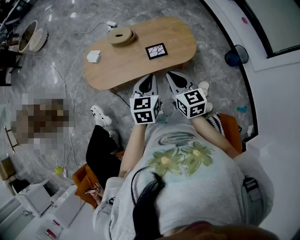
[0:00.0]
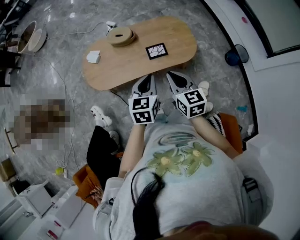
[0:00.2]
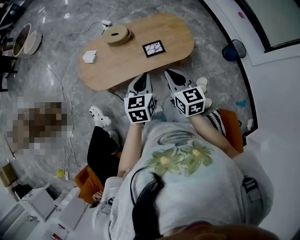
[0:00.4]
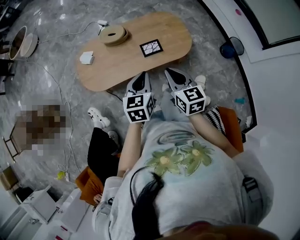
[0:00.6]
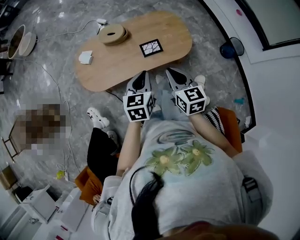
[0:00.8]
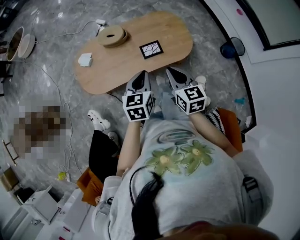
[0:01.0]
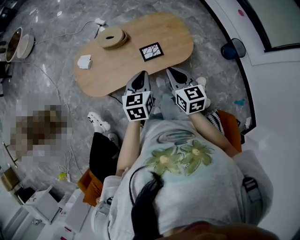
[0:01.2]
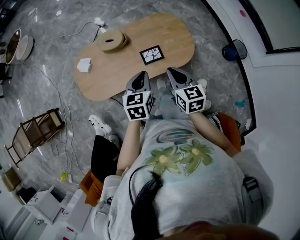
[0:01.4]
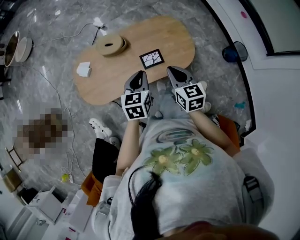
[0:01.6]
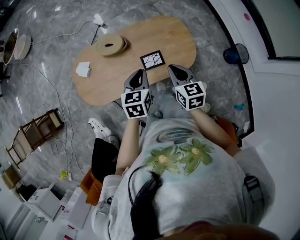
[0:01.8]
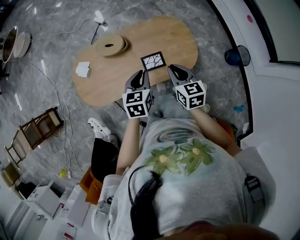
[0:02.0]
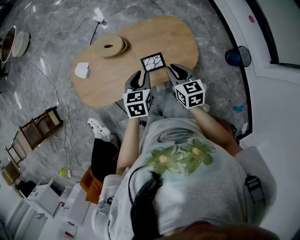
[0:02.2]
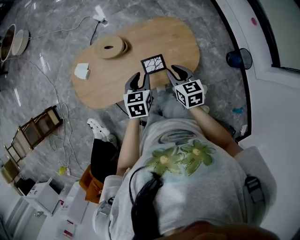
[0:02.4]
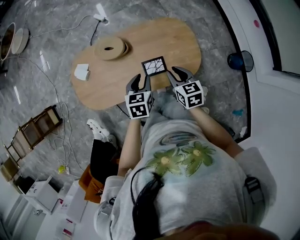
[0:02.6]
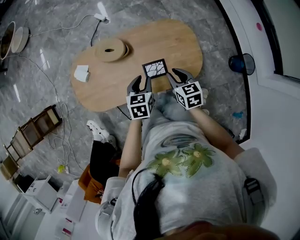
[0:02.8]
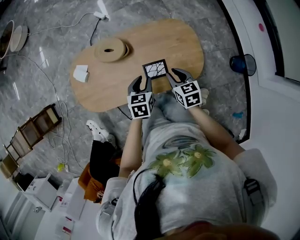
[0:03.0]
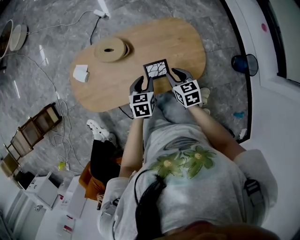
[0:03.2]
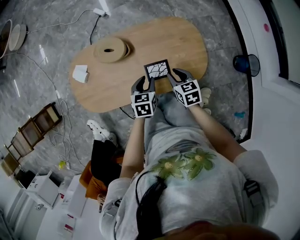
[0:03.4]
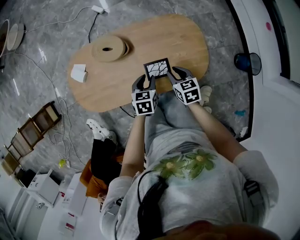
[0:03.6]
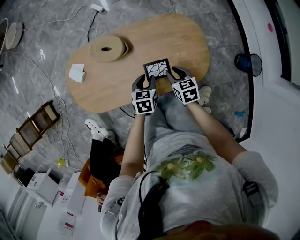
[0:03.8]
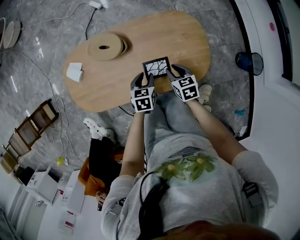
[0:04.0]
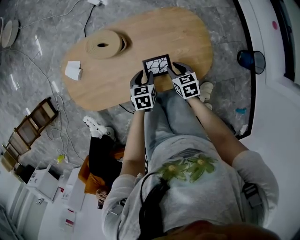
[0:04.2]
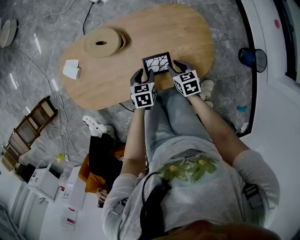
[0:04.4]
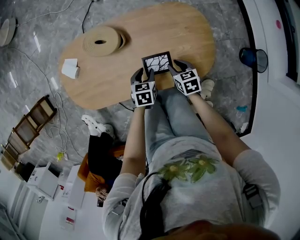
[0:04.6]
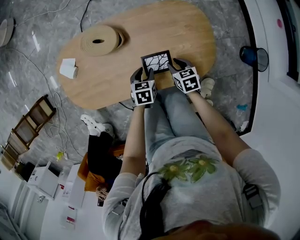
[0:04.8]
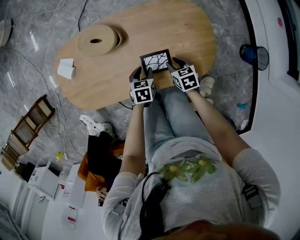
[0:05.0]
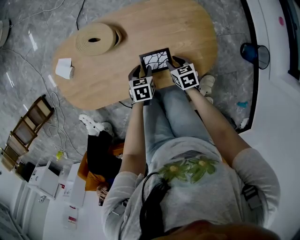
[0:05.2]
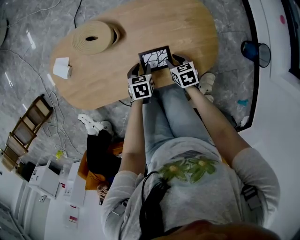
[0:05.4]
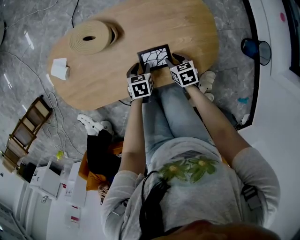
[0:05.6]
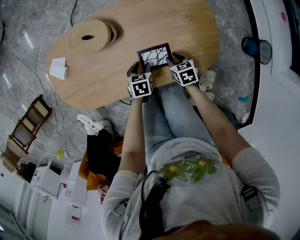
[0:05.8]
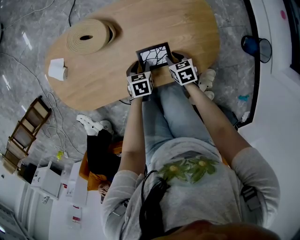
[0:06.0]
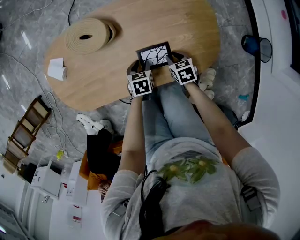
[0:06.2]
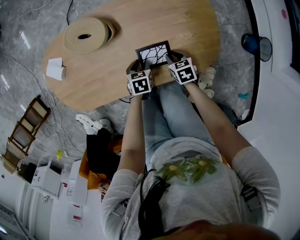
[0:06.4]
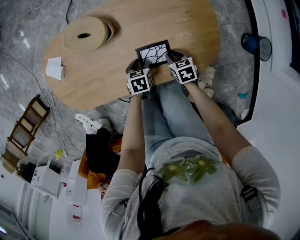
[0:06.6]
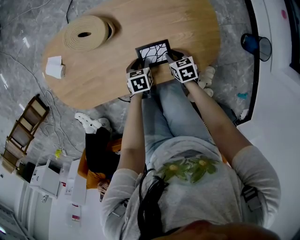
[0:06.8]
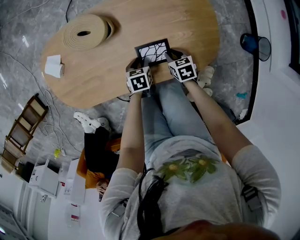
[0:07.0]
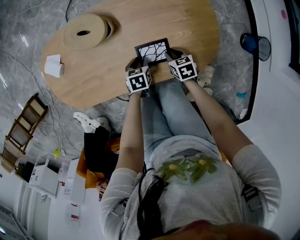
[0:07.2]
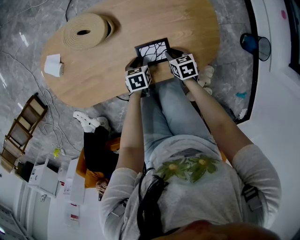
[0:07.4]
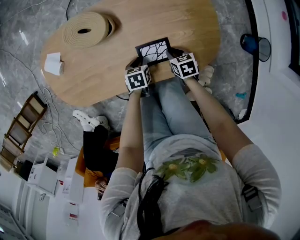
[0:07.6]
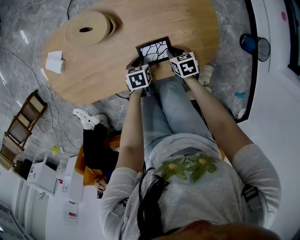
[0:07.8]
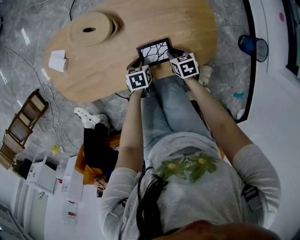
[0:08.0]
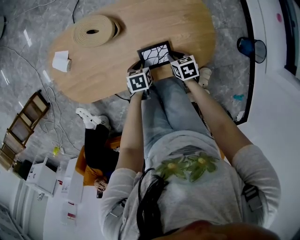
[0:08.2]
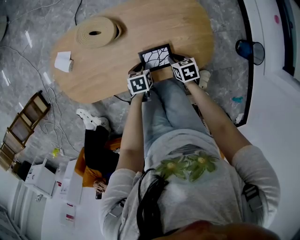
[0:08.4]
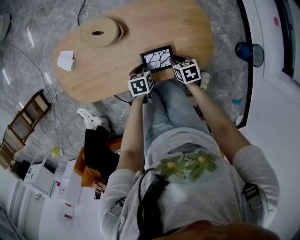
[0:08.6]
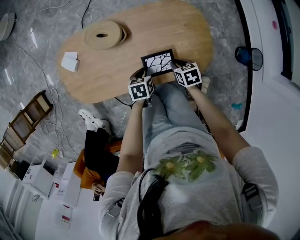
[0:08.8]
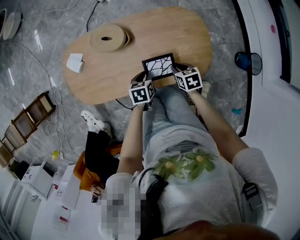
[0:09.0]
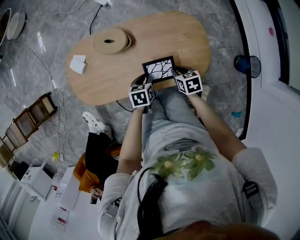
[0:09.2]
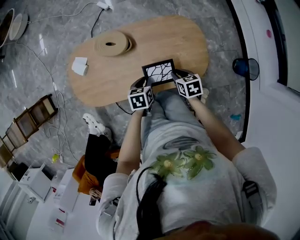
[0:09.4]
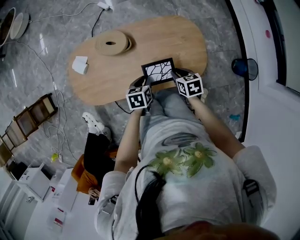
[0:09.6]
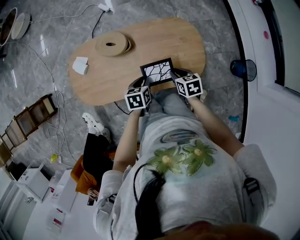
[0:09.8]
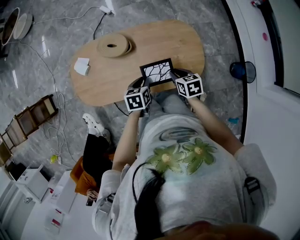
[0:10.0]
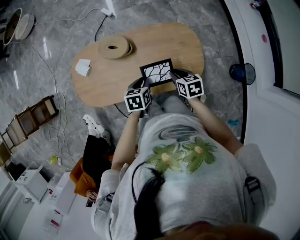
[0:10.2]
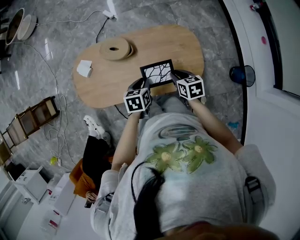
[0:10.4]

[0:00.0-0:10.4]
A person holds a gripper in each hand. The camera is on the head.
0:00.0 to 0:01.4: The two grippers go approximately 15 cm forward and downward.
0:01.4 to 0:03.0: Both grippers travel together forward and downward, approximately 20 cm. The left gripper opens its fingers, while the right gripper swivels approximately 20 degrees.
0:03.0 to 0:04.4: The grippers both shift downward by about 15 cm.
0:04.4 to 0:06.0: Both grippers travel together downward, approximately 10 cm.
0:06.0 to 0:07.4: There are only small adjustments of the grippers.
0:07.4 to 0:09.0: The grippers both shift upward by approximately 15 cm.
0:09.0 to 0:10.4: The grippers both shift upward by about 10 cm.

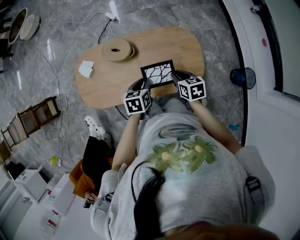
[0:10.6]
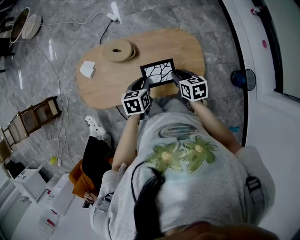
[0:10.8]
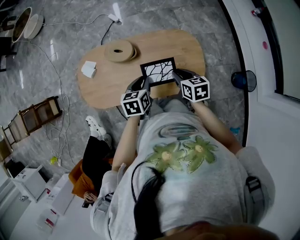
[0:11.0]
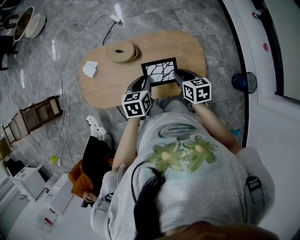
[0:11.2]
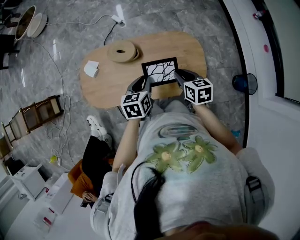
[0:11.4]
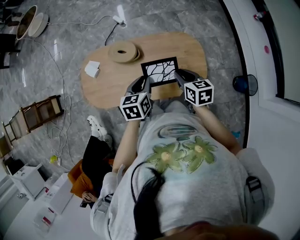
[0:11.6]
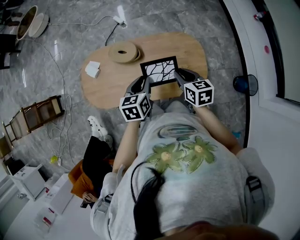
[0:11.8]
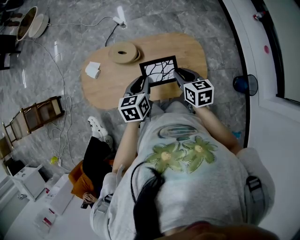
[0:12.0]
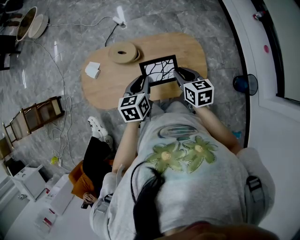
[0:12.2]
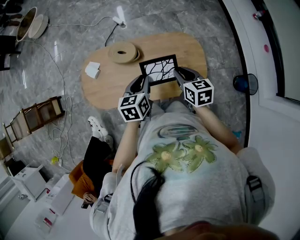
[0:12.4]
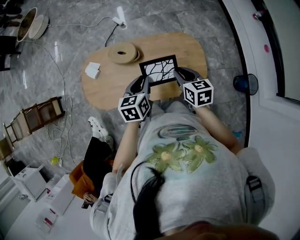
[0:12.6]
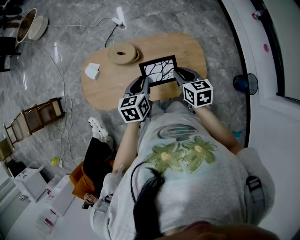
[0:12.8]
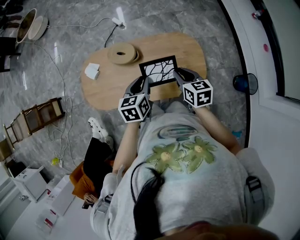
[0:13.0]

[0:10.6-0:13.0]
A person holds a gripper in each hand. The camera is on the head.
0:10.6 to 0:11.8: Both grippers travel together upward, roughly 10 cm.
0:11.8 to 0:13.0: Neither gripper changes place.

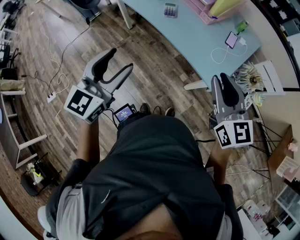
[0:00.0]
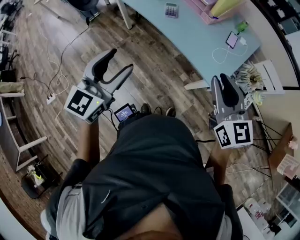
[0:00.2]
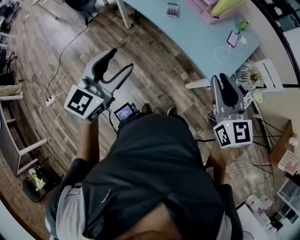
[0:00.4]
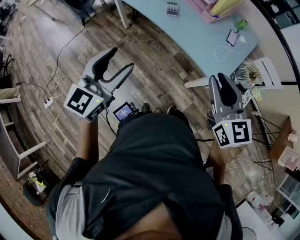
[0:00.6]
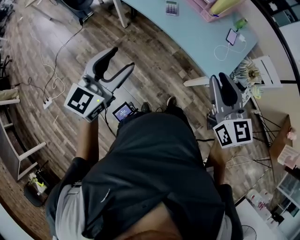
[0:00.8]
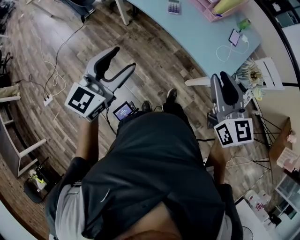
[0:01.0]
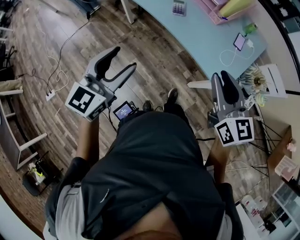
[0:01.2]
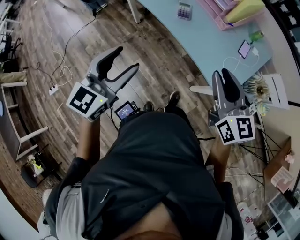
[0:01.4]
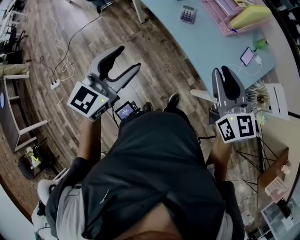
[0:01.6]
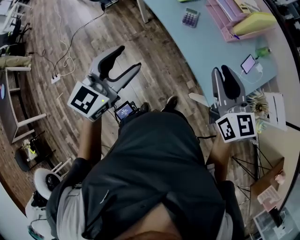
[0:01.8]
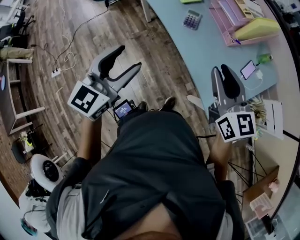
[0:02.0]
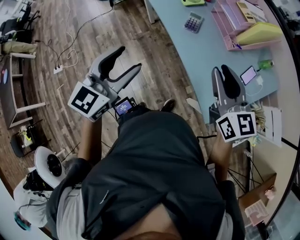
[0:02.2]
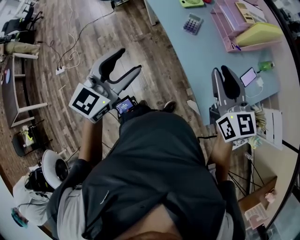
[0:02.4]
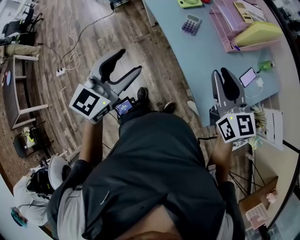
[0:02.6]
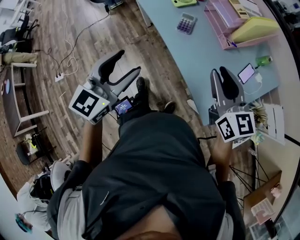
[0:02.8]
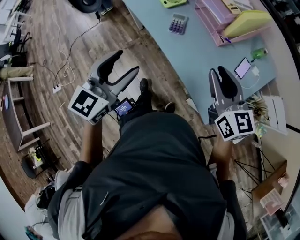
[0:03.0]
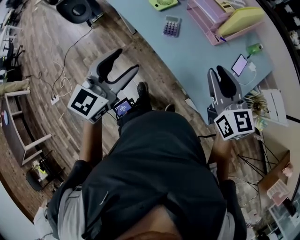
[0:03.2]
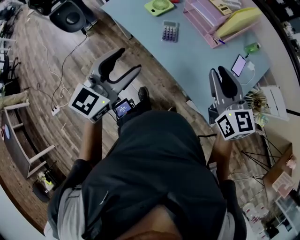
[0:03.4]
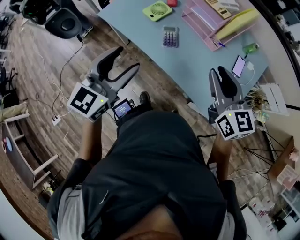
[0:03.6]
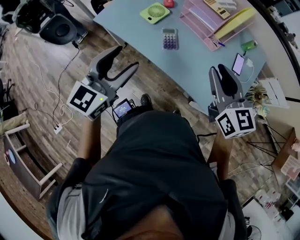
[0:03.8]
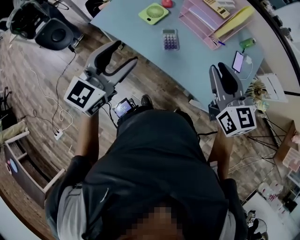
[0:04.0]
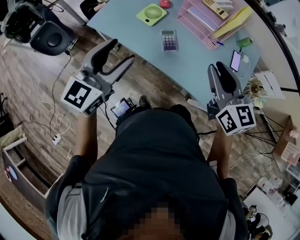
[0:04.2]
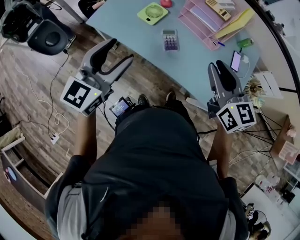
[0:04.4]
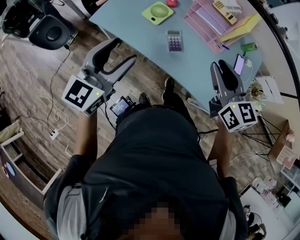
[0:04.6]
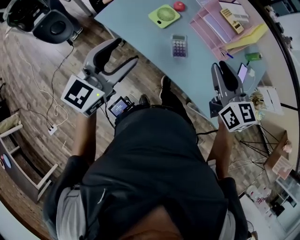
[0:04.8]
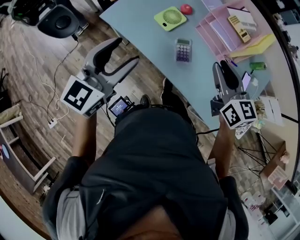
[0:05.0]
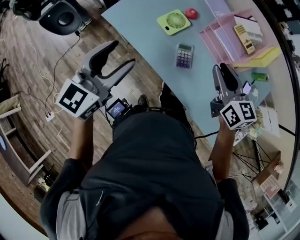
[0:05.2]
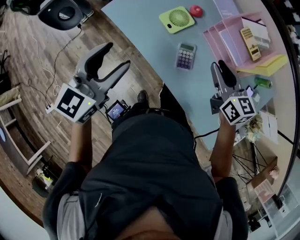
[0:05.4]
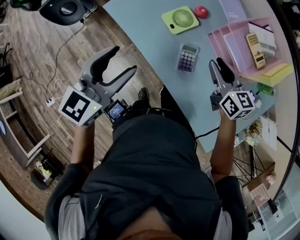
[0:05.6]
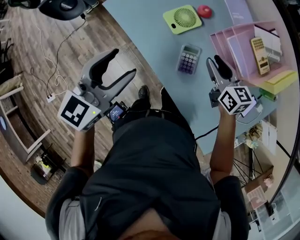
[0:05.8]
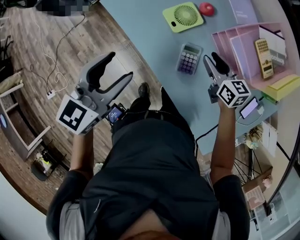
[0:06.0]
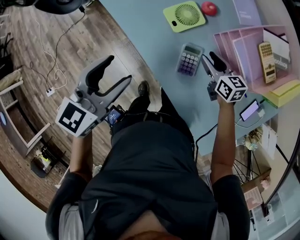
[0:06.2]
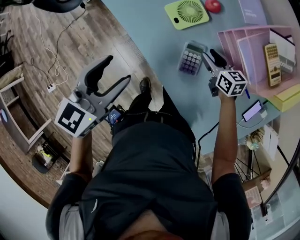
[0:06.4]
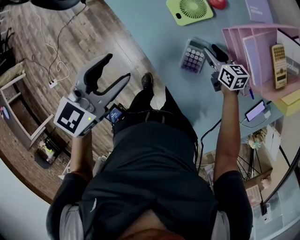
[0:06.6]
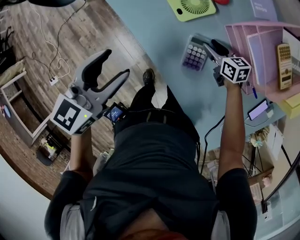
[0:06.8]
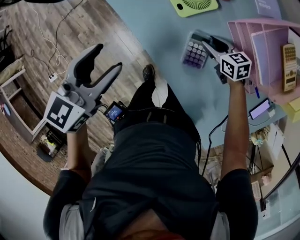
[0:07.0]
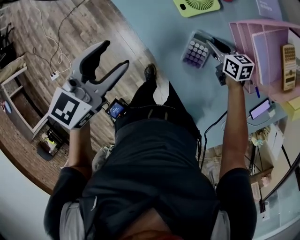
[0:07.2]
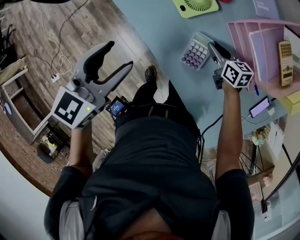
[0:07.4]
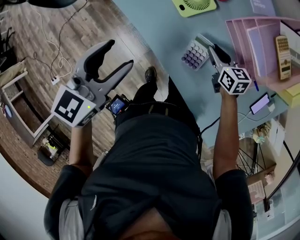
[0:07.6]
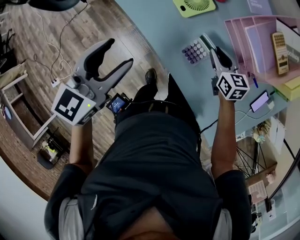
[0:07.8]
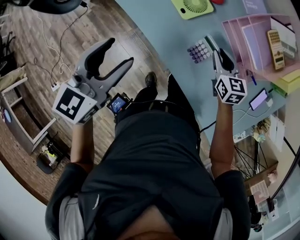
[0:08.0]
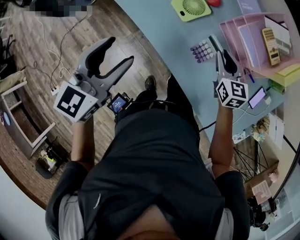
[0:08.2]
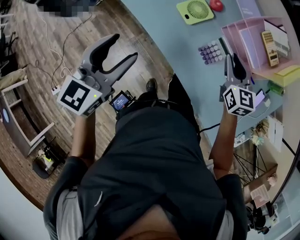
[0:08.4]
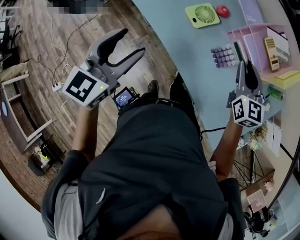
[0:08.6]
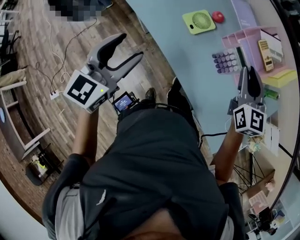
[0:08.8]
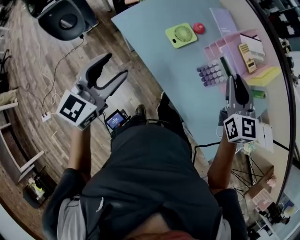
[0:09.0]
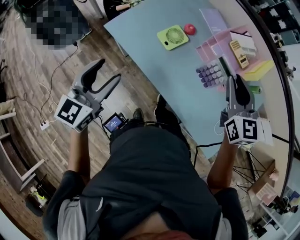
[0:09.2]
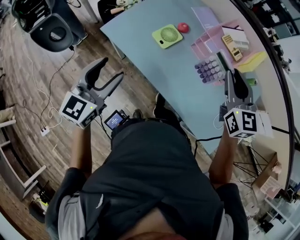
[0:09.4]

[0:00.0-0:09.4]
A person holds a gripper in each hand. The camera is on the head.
0:00.0 to 0:01.6: The right gripper heads forward and to the left, covering some 15 cm, while the left gripper heads forward, covering about 10 cm.
0:01.6 to 0:03.2: Both grippers move forward and to the right, roughly 15 cm.
0:03.2 to 0:04.8: Both grippers travel together to the left and forward, roughly 25 cm.
0:04.8 to 0:06.2: The right gripper shifts about 35 cm downward and forward, and changes its angle by roughly 30 degrees, while the left gripper shifts about 10 cm downward and forward, and rotates roughly 20 degrees.
0:06.2 to 0:07.8: The right gripper goes downward and returns, roughly 10 cm each way.
0:07.8 to 0:09.4: The left gripper heads backward and upward, covering some 15 cm. Meanwhile the right gripper travels upward by about 35 cm, and rotates approximately 40 degrees.

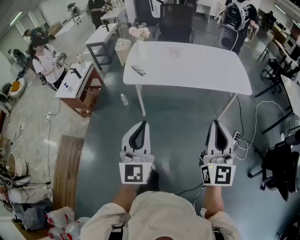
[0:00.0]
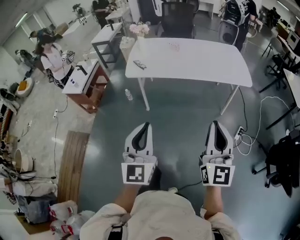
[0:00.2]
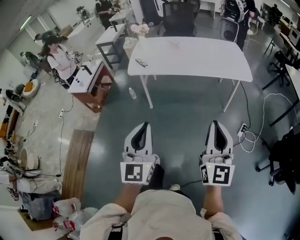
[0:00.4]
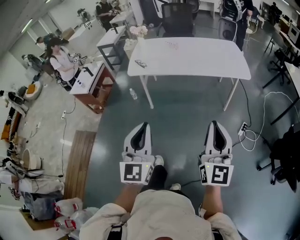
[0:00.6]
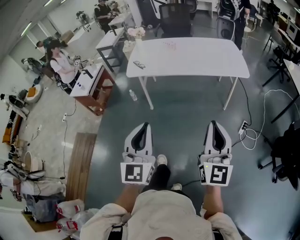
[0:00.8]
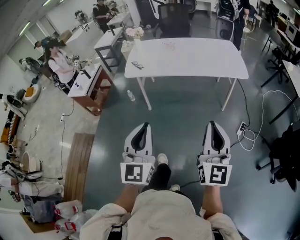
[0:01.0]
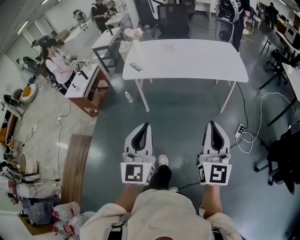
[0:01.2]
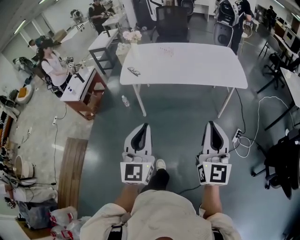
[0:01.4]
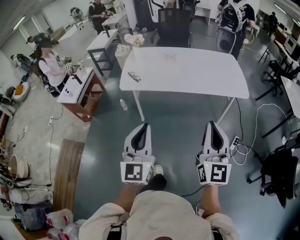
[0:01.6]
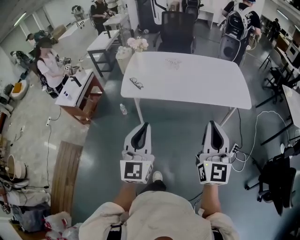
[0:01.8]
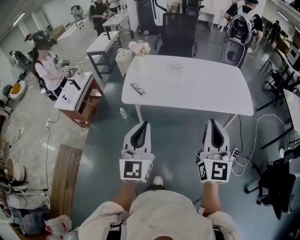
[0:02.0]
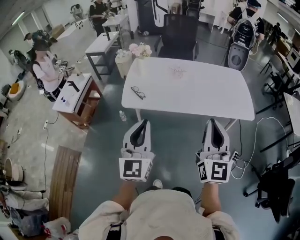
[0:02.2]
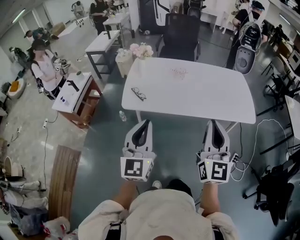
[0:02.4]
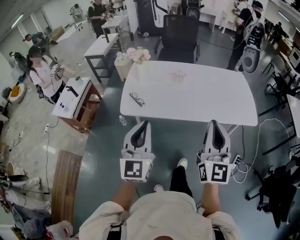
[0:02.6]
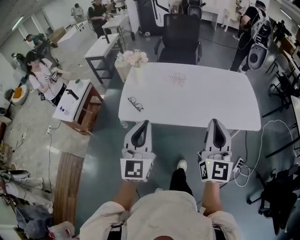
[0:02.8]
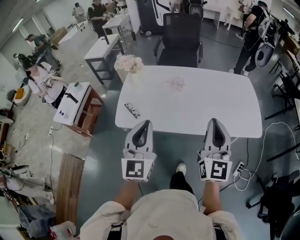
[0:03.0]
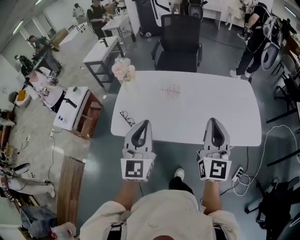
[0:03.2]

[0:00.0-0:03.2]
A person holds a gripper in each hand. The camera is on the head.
0:00.0 to 0:01.6: The two grippers go some 5 cm to the right. The left gripper goes backward and returns, some 15 cm each way. The right gripper travels backward and back again, about 15 cm each way.
0:01.6 to 0:03.2: The two grippers travel together, forward, about 40 cm.
